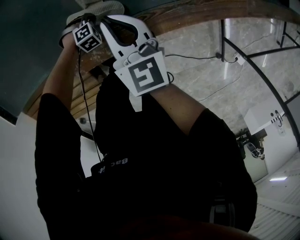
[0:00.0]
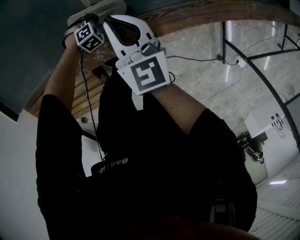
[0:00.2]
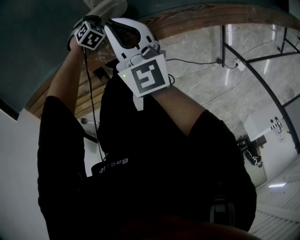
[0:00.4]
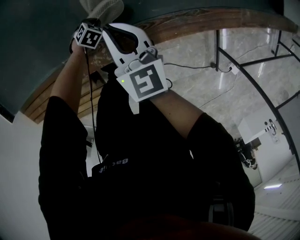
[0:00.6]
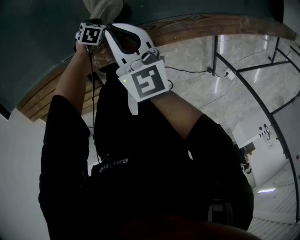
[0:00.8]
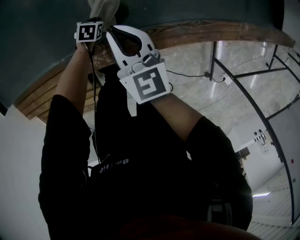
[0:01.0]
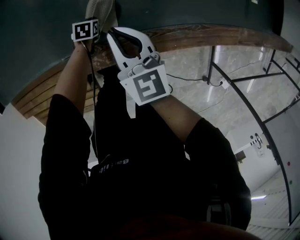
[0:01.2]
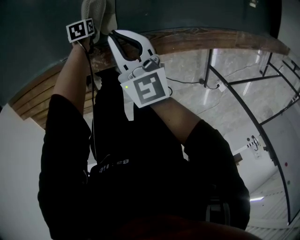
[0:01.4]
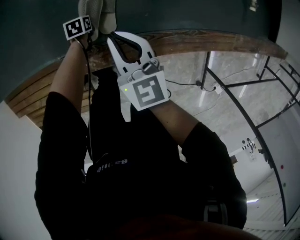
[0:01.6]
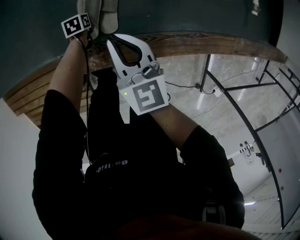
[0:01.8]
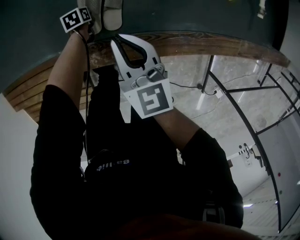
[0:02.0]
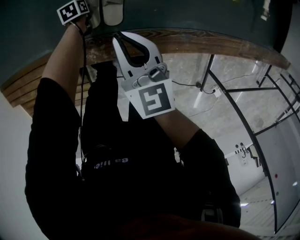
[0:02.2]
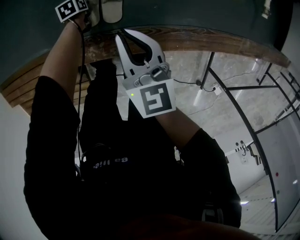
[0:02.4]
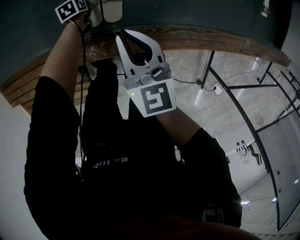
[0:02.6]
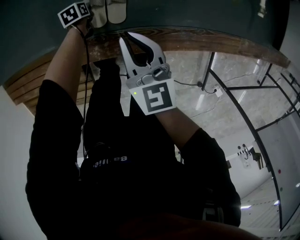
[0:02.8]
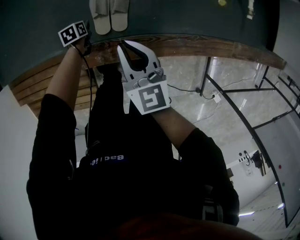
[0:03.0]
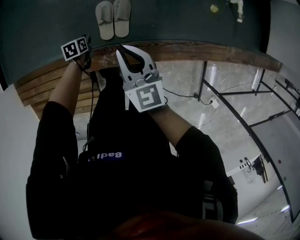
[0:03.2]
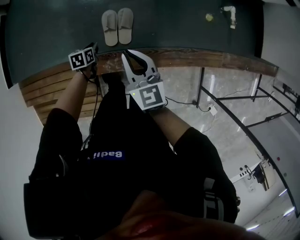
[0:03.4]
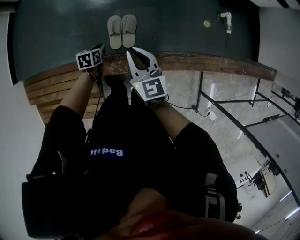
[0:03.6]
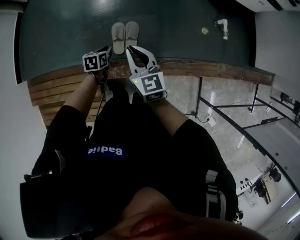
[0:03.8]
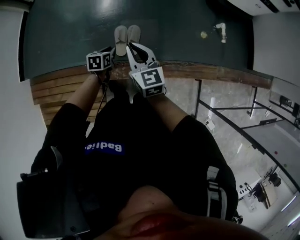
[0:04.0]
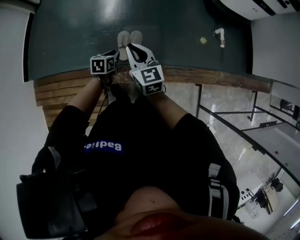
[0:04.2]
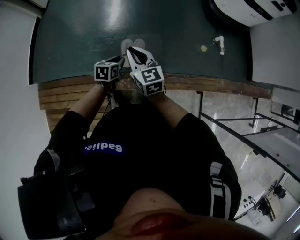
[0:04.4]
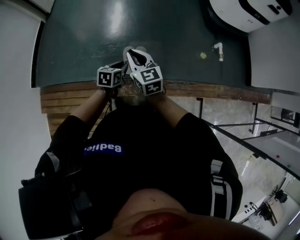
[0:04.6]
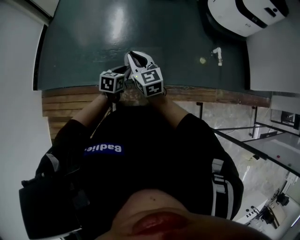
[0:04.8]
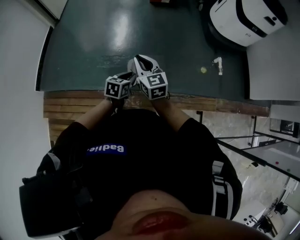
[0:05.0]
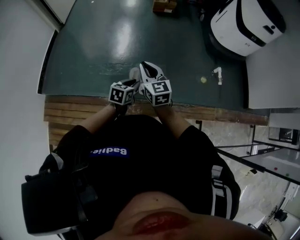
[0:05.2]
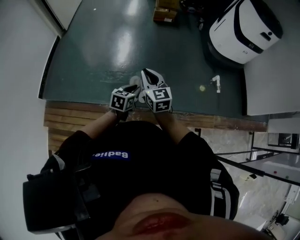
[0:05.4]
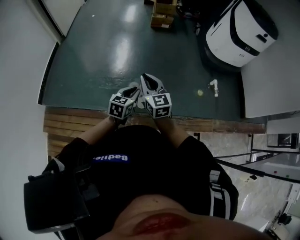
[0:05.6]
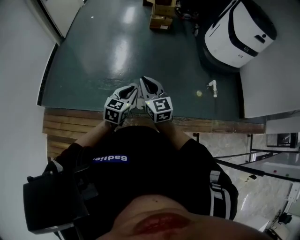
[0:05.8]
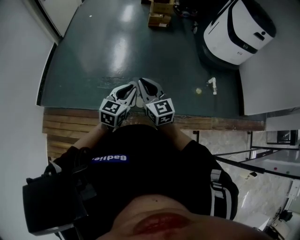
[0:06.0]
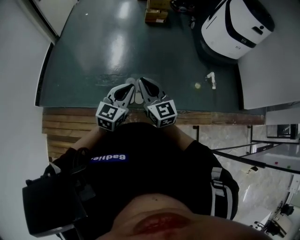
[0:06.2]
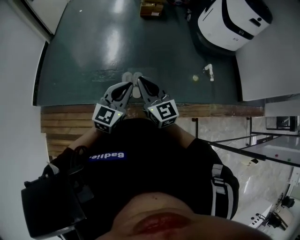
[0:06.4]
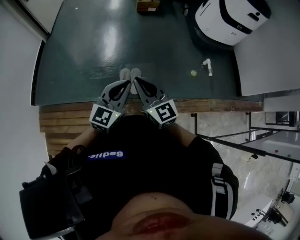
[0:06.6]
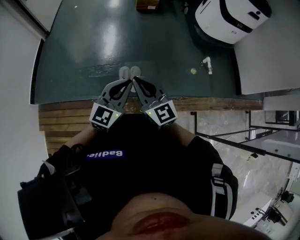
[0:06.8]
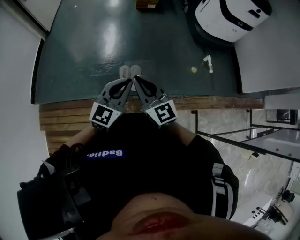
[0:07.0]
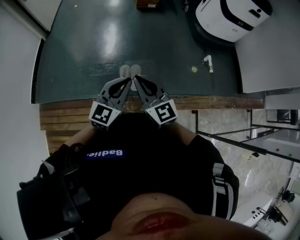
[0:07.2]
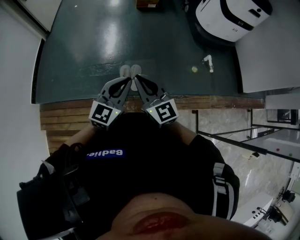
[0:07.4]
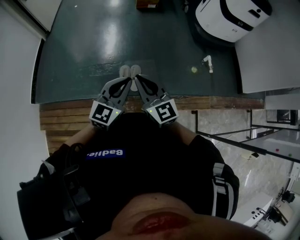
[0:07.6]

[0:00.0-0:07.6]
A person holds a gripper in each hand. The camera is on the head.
0:00.0 to 0:01.6: The right gripper shifts by approximately 5 cm. The left gripper shifts by some 10 cm, and rolls counterclockwise, seen from behind, by approximately 90 degrees.
0:01.6 to 0:03.0: The right gripper goes roughly 10 cm upward and backward; the left gripper is displaced upward and to the left by about 10 cm.
0:03.0 to 0:04.6: The left gripper heads upward, covering some 40 cm, and rotates roughly 30 degrees. Meanwhile the right gripper travels upward by about 25 cm.
0:04.6 to 0:06.0: The right gripper heads upward, covering some 10 cm; the left gripper shifts about 20 cm upward, and changes its angle by some 30 degrees.
0:06.0 to 0:07.6: The right gripper heads backward, covering roughly 5 cm. Meanwhile the left gripper moves upward, roughly 5 cm.

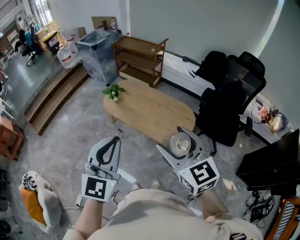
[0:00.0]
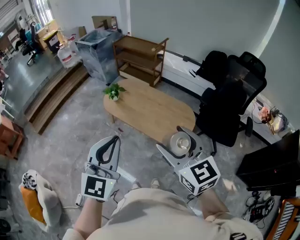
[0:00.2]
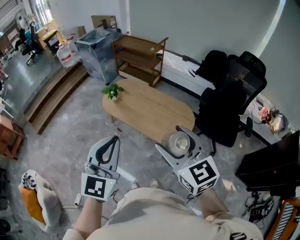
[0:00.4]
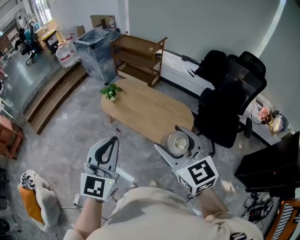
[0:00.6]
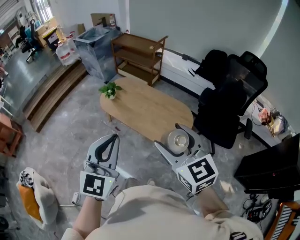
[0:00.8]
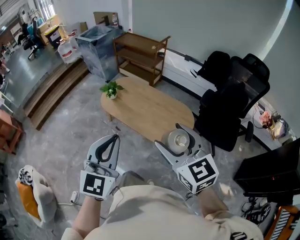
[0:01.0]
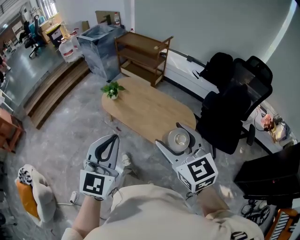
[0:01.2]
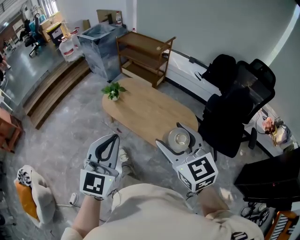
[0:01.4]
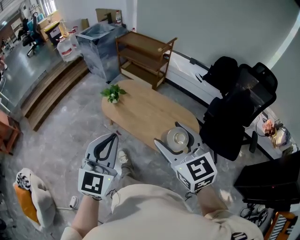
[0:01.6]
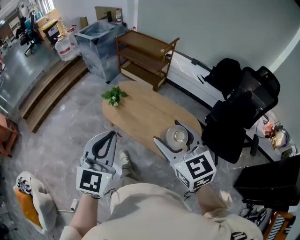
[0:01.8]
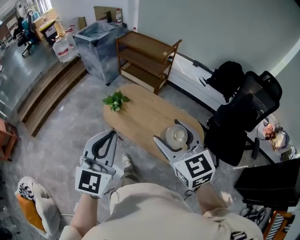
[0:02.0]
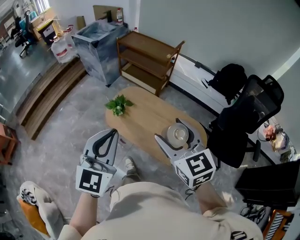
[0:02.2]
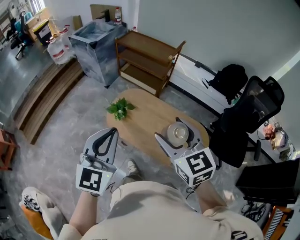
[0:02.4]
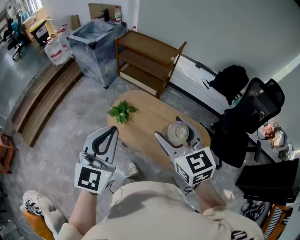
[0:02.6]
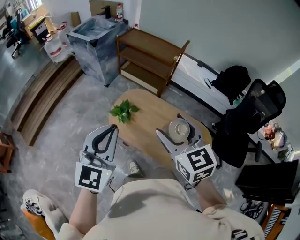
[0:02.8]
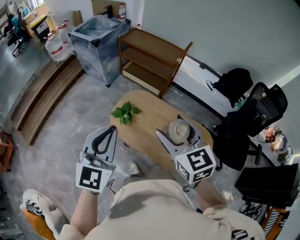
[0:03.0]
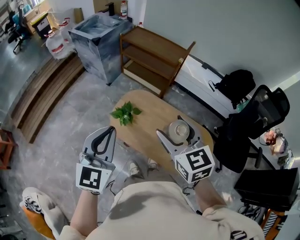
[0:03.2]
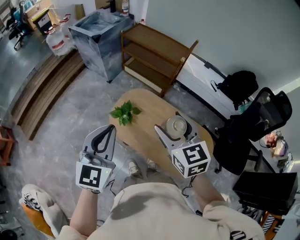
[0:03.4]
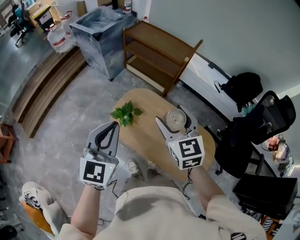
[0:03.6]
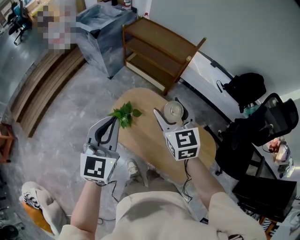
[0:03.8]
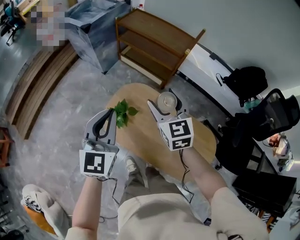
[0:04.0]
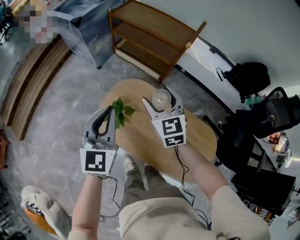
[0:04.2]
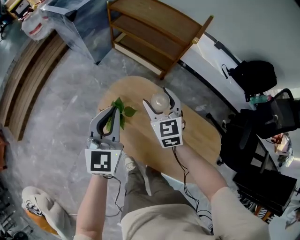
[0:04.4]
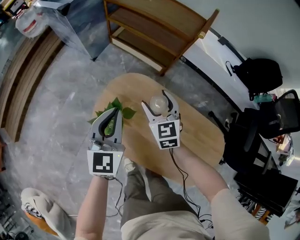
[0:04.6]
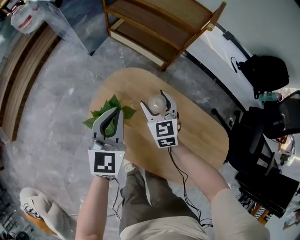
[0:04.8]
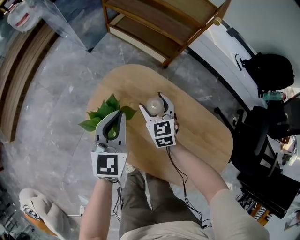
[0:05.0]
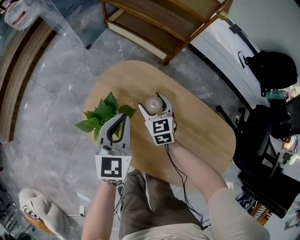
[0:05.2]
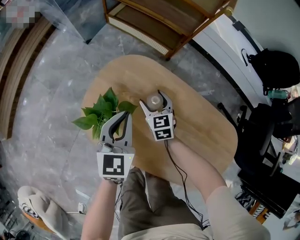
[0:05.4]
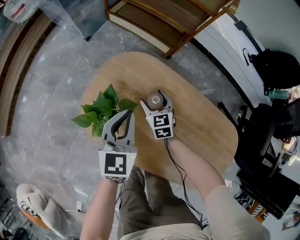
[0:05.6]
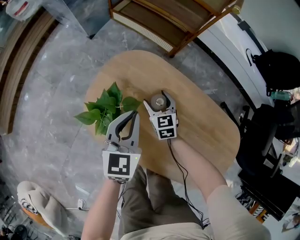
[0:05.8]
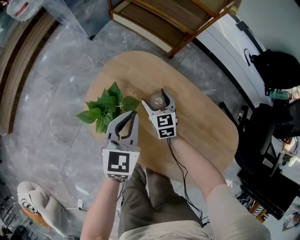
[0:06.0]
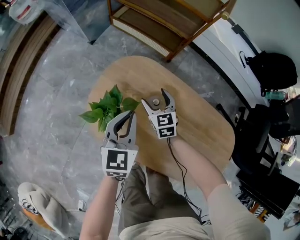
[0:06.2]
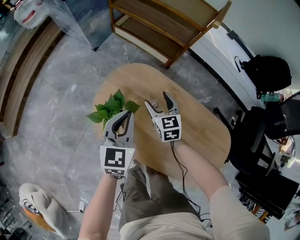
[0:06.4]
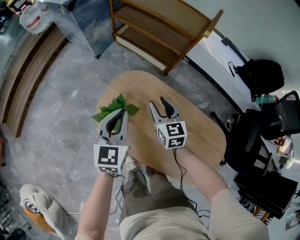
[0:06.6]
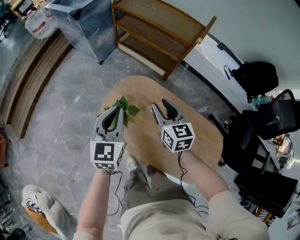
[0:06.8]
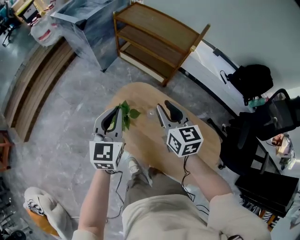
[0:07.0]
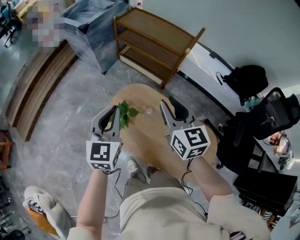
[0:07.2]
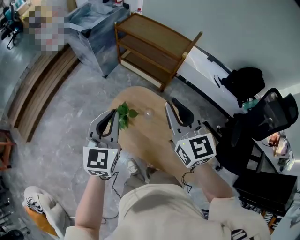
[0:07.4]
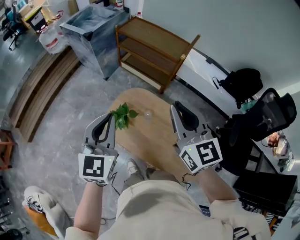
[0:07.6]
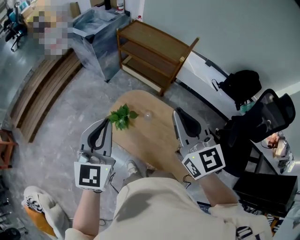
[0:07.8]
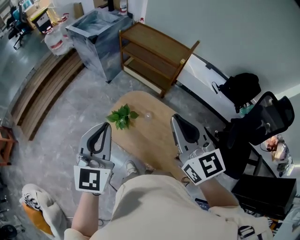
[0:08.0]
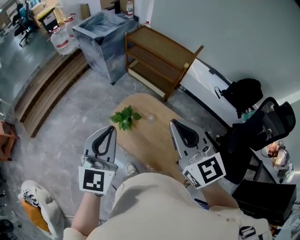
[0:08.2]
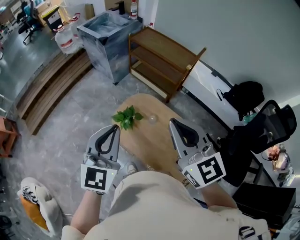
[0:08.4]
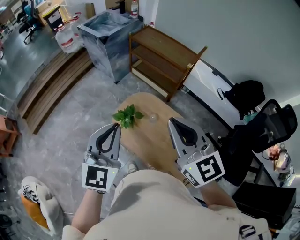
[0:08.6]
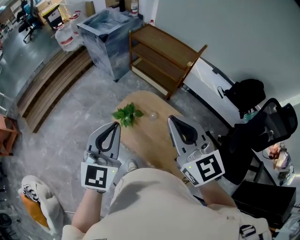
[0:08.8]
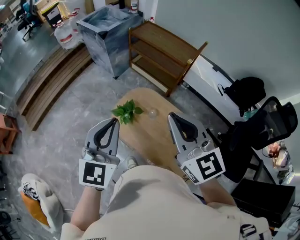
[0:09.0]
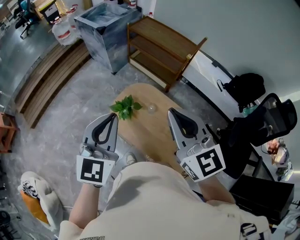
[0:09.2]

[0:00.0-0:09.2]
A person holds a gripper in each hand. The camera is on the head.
0:00.0 to 0:01.6: The left gripper is displaced forward and downward by about 15 cm. Meanwhile the right gripper travels forward by roughly 15 cm.
0:01.6 to 0:03.0: The grippers both shift forward and to the left by roughly 40 cm.
0:03.0 to 0:04.6: The two grippers go some 50 cm downward and forward.
0:04.6 to 0:06.2: The two grippers go approximately 20 cm downward.
0:06.2 to 0:07.6: The two grippers go some 50 cm upward. The right gripper changes its angle by roughly 30 degrees, and closes.
0:07.6 to 0:09.2: The grippers both shift backward and upward by about 10 cm.

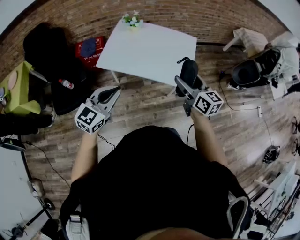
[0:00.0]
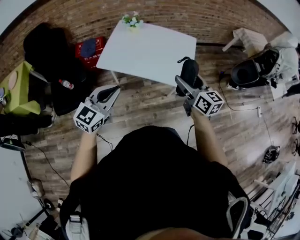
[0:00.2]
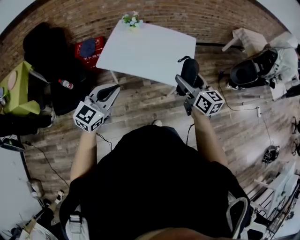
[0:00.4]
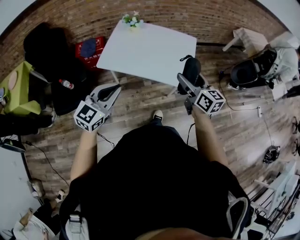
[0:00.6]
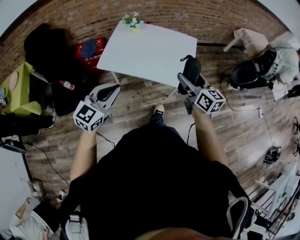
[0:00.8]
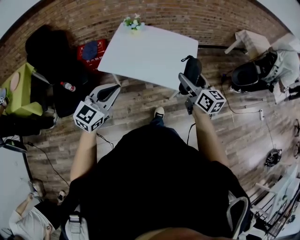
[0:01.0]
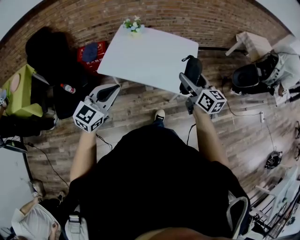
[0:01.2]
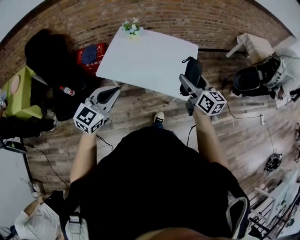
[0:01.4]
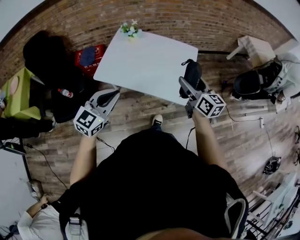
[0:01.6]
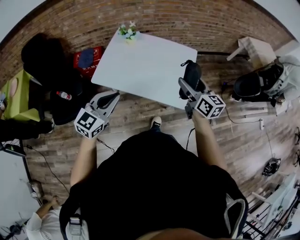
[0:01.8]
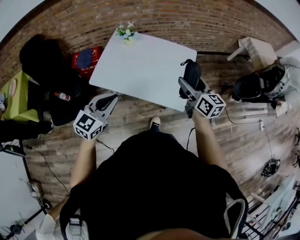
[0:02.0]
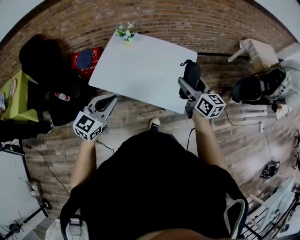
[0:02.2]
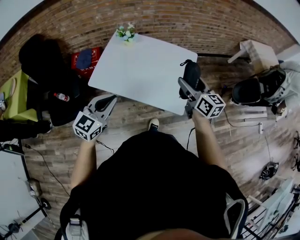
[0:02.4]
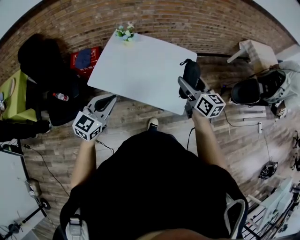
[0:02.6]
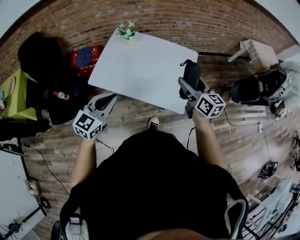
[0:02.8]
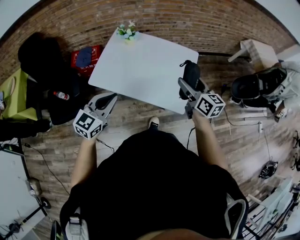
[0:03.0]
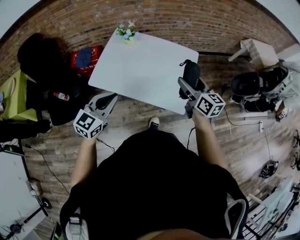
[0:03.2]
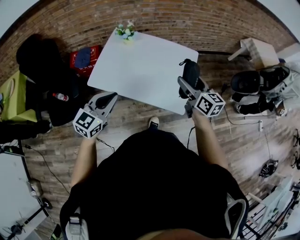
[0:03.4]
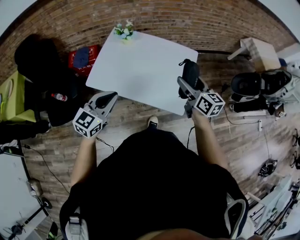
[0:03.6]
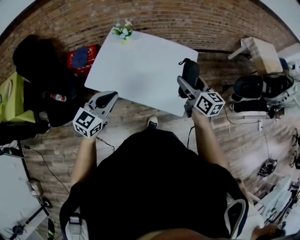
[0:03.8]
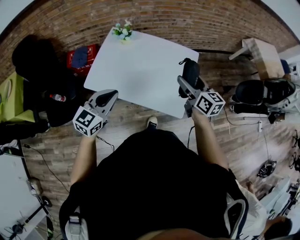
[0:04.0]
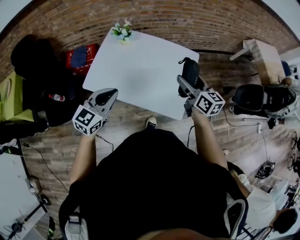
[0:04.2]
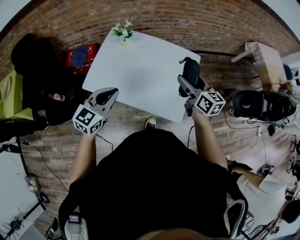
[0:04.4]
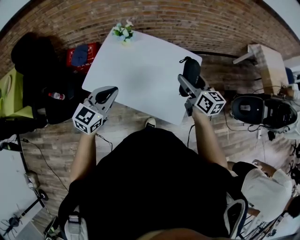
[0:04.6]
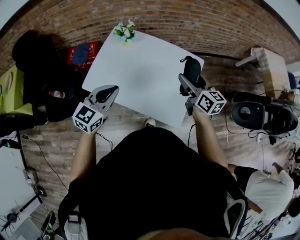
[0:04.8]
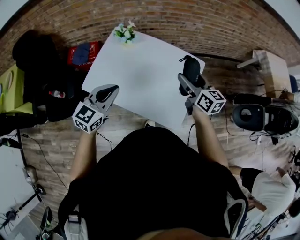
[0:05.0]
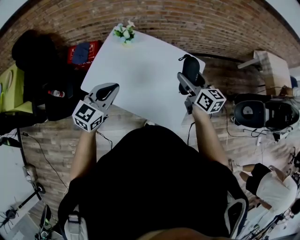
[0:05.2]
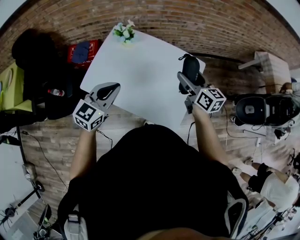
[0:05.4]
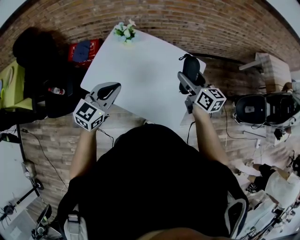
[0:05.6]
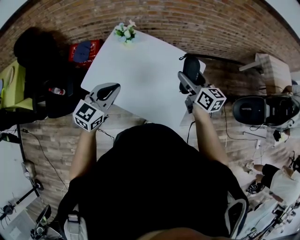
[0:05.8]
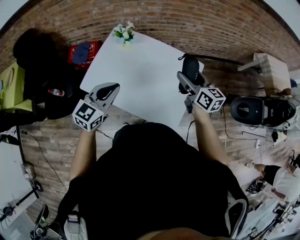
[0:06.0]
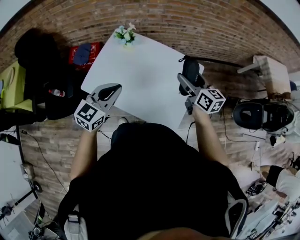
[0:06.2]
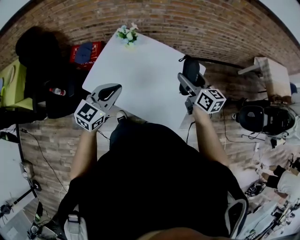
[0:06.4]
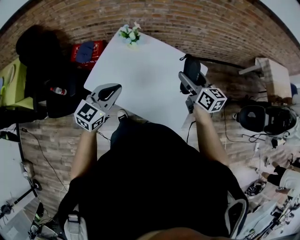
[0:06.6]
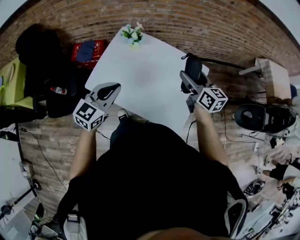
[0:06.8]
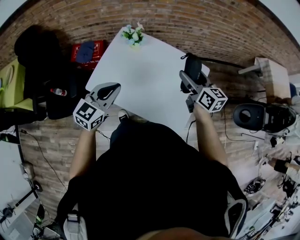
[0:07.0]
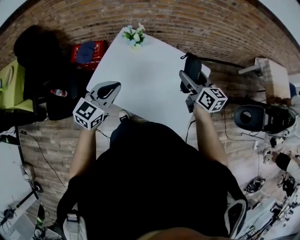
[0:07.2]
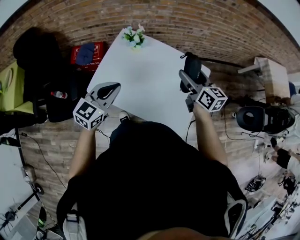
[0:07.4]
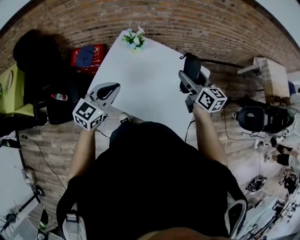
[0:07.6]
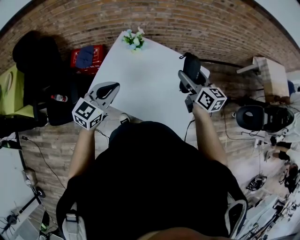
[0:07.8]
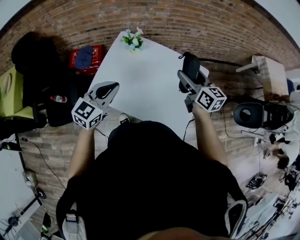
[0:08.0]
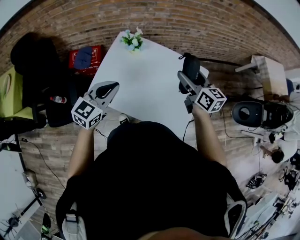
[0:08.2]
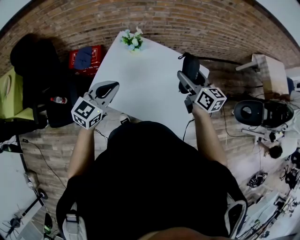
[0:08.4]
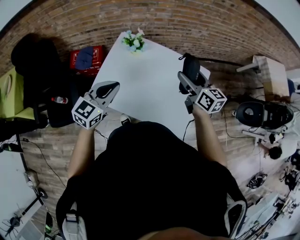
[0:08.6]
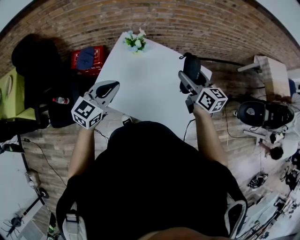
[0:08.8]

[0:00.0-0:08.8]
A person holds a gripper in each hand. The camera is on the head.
0:00.0 to 0:01.4: Both grippers travel together forward, approximately 5 cm.
0:01.4 to 0:03.0: The two grippers go about 10 cm forward.
0:03.0 to 0:04.4: Both grippers travel together forward, about 10 cm.
0:04.4 to 0:05.8: Both grippers travel together forward, some 10 cm.
0:05.8 to 0:07.4: The grippers both shift to the left by roughly 10 cm.
0:07.4 to 0:08.8: The left gripper ends up roughly 5 cm from where it was.
